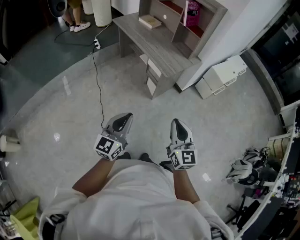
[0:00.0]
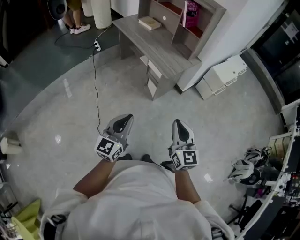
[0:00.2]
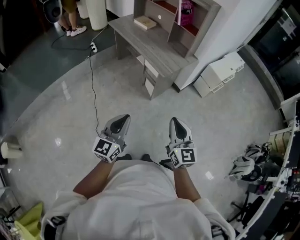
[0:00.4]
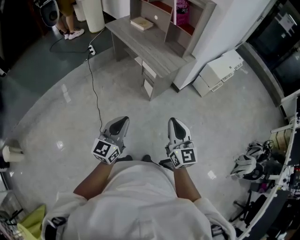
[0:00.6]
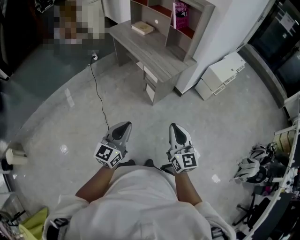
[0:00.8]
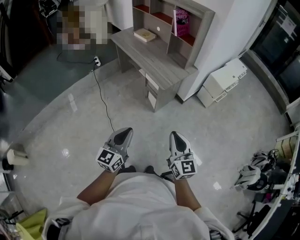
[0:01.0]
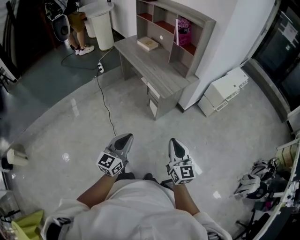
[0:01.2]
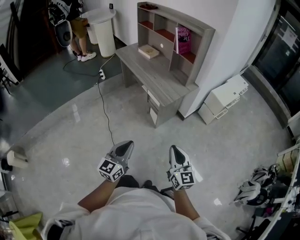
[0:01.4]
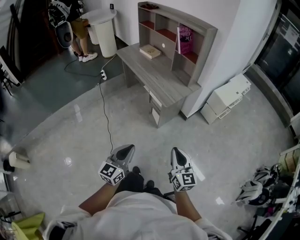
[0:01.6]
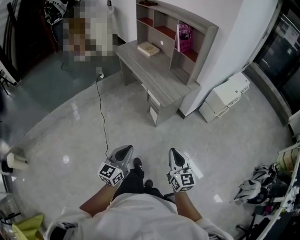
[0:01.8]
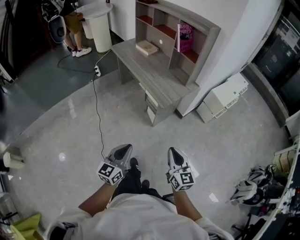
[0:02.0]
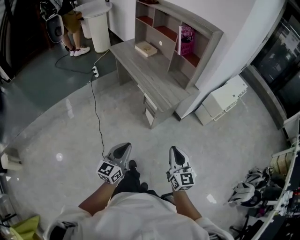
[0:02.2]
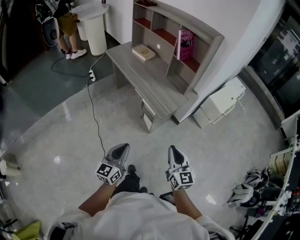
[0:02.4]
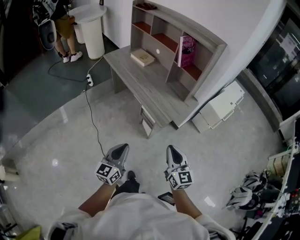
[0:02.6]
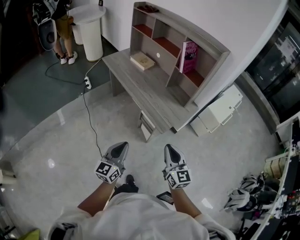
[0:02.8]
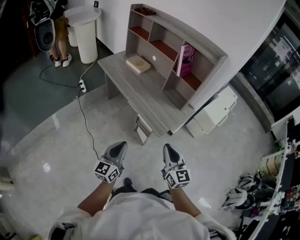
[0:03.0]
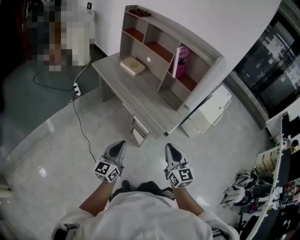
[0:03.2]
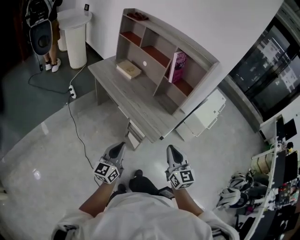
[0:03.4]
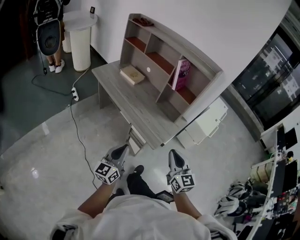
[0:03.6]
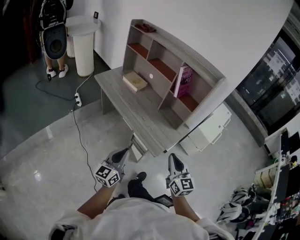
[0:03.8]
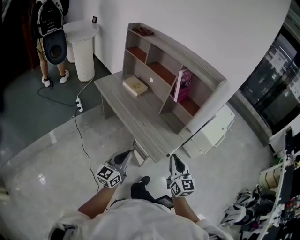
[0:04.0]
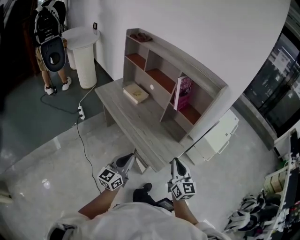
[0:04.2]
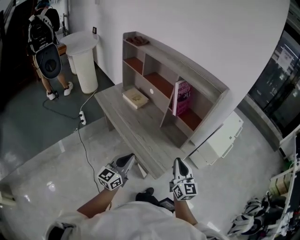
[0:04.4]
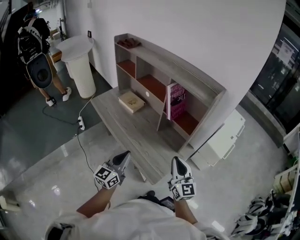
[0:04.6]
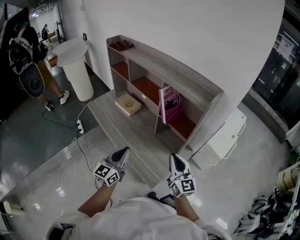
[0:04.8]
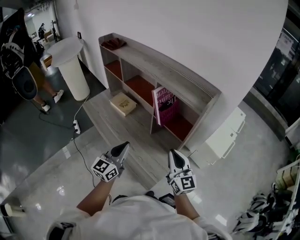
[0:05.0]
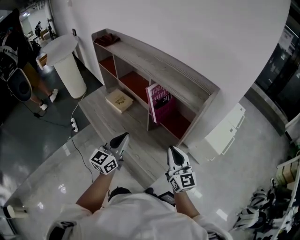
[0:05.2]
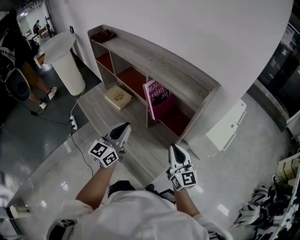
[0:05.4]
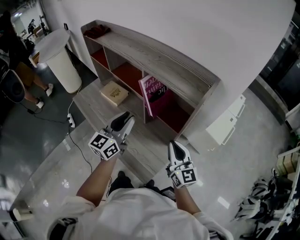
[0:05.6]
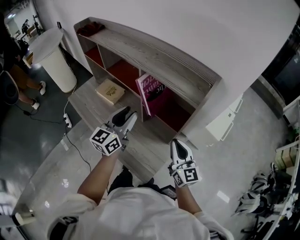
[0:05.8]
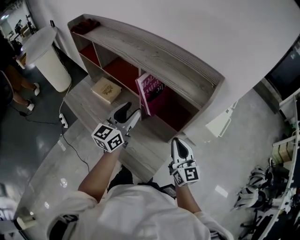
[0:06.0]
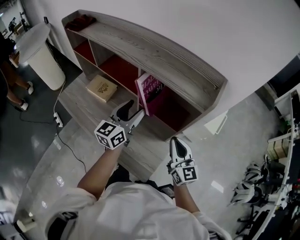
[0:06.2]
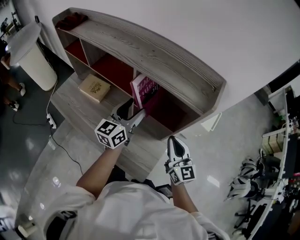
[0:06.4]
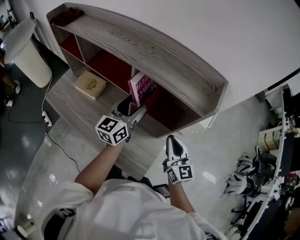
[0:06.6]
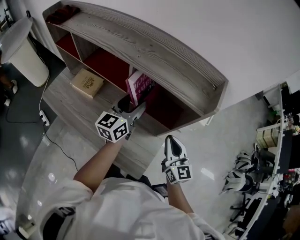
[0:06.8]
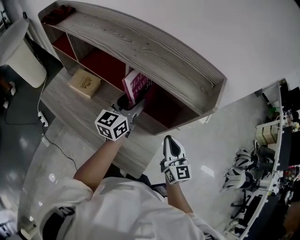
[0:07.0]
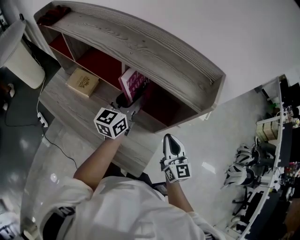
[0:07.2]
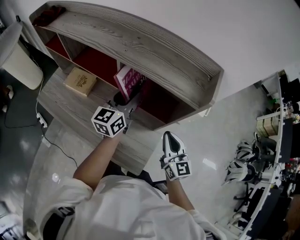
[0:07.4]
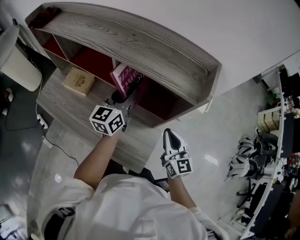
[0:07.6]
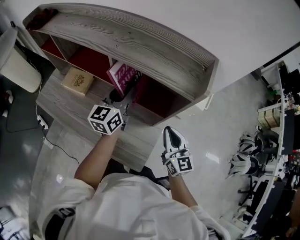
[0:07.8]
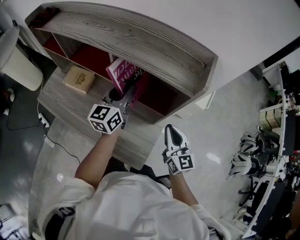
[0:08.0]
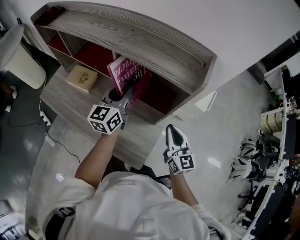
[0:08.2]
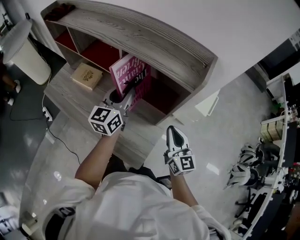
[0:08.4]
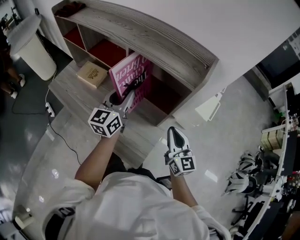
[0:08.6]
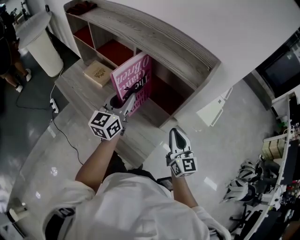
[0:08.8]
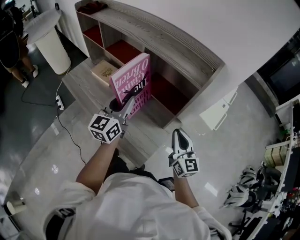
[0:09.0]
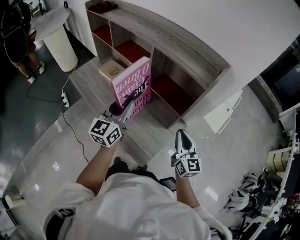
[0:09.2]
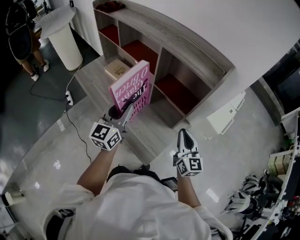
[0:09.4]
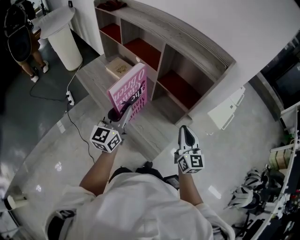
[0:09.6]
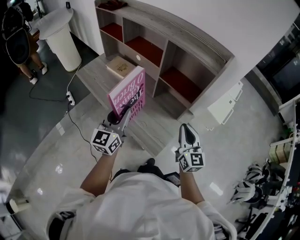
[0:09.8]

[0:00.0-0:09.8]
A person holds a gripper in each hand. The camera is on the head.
0:00.0 to 0:01.4: Both grippers travel together to the right, some 5 cm.
0:01.4 to 0:02.8: The grippers both shift forward and to the left by roughly 25 cm.
0:02.8 to 0:04.2: The two grippers go approximately 20 cm forward.
0:04.2 to 0:05.6: The two grippers go roughly 25 cm forward.
0:05.6 to 0:07.0: The right gripper ends up approximately 5 cm from where it was, while the left gripper goes about 15 cm forward, and opens its fingers.
0:07.0 to 0:08.4: The left gripper closes up.
0:08.4 to 0:09.8: The right gripper moves backward and to the left, roughly 10 cm, while the left gripper moves backward and to the left, approximately 25 cm.

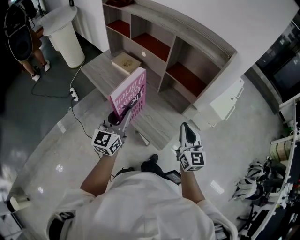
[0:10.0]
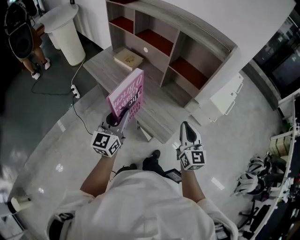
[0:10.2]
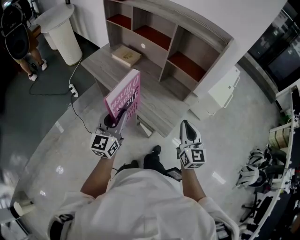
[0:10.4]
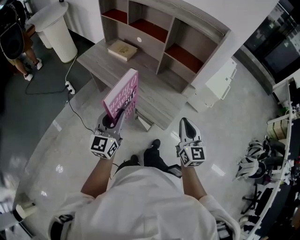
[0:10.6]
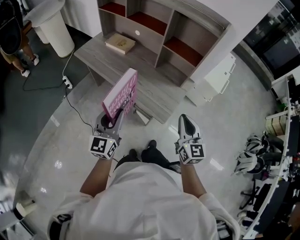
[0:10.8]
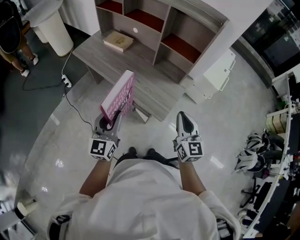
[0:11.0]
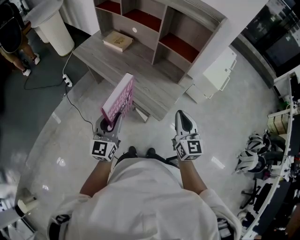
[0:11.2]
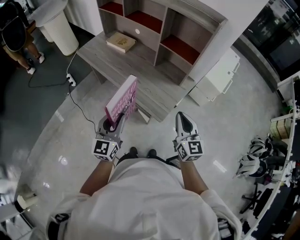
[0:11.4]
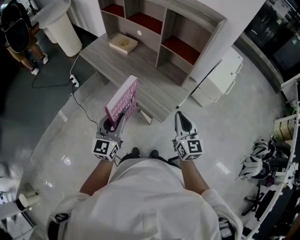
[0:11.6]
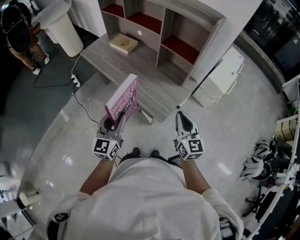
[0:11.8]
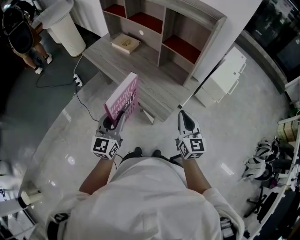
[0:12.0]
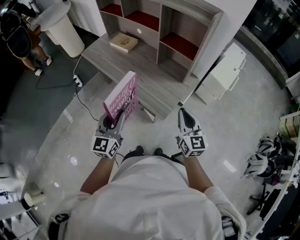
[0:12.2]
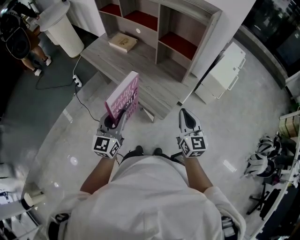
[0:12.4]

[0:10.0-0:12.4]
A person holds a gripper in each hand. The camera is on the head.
0:10.0 to 0:11.2: The right gripper goes approximately 10 cm backward, while the left gripper goes some 15 cm backward and downward.
0:11.2 to 0:12.4: There are only small adjustments of the grippers.

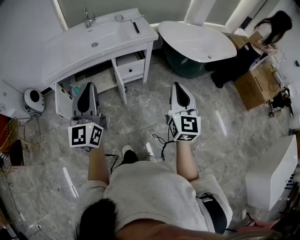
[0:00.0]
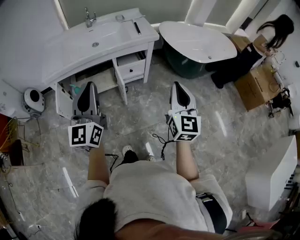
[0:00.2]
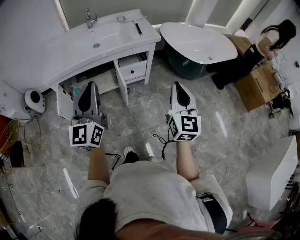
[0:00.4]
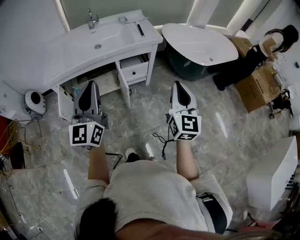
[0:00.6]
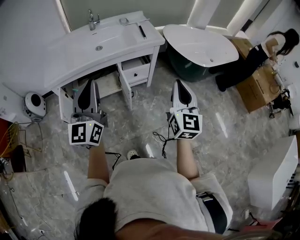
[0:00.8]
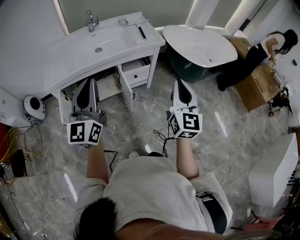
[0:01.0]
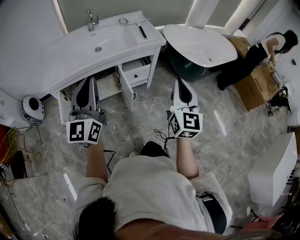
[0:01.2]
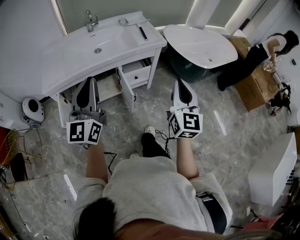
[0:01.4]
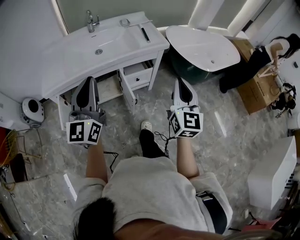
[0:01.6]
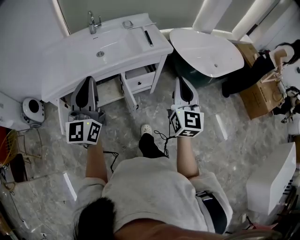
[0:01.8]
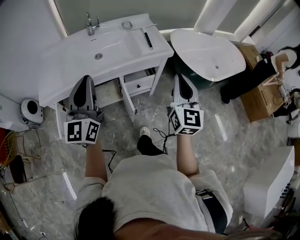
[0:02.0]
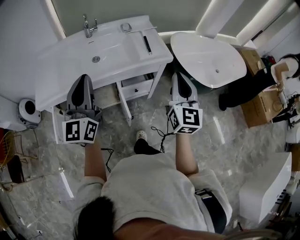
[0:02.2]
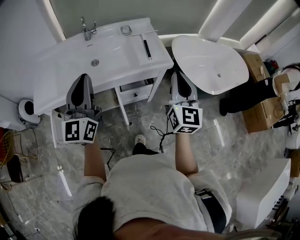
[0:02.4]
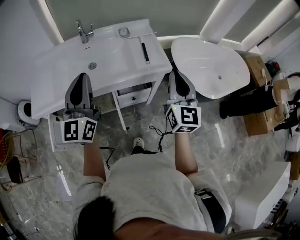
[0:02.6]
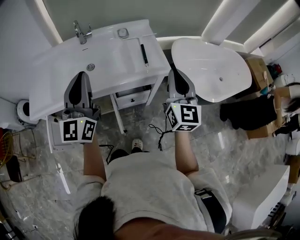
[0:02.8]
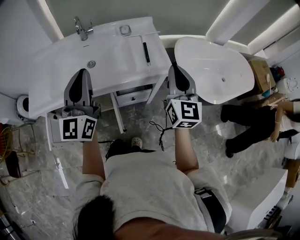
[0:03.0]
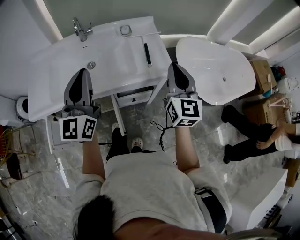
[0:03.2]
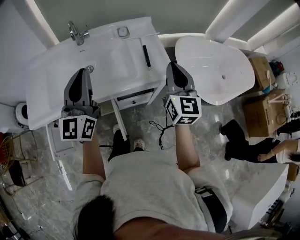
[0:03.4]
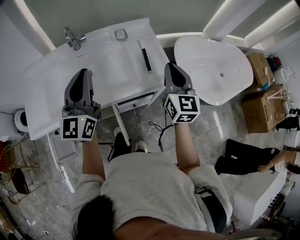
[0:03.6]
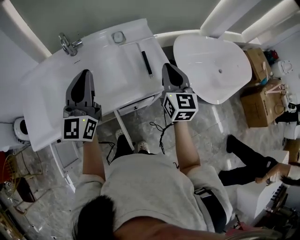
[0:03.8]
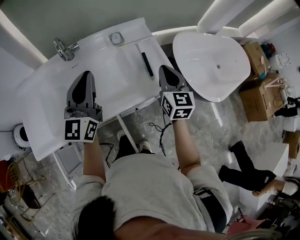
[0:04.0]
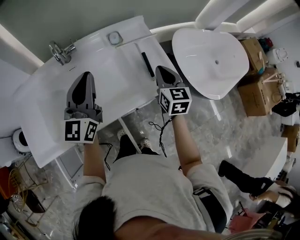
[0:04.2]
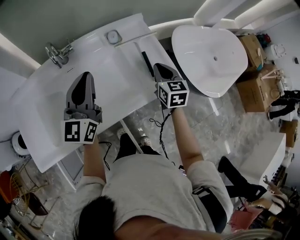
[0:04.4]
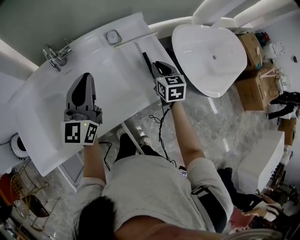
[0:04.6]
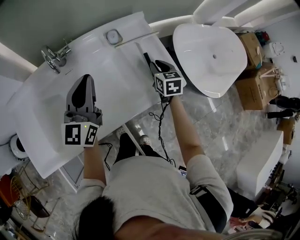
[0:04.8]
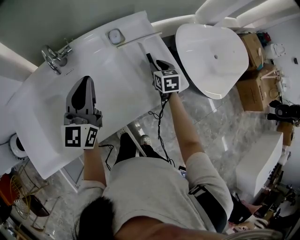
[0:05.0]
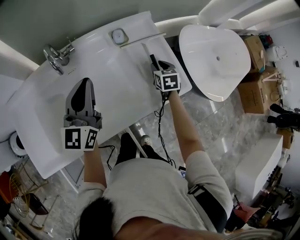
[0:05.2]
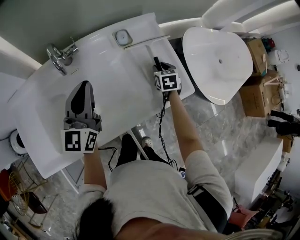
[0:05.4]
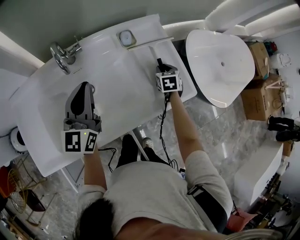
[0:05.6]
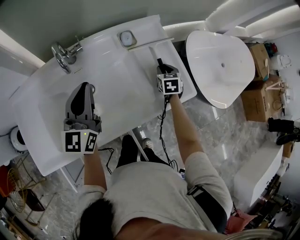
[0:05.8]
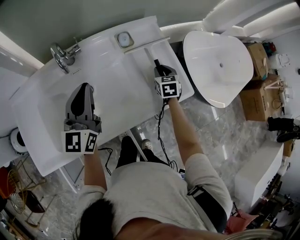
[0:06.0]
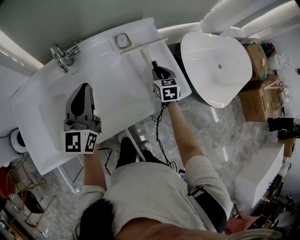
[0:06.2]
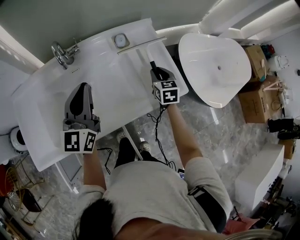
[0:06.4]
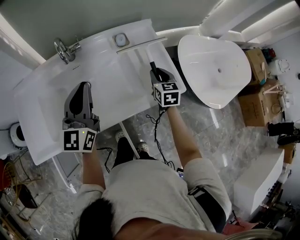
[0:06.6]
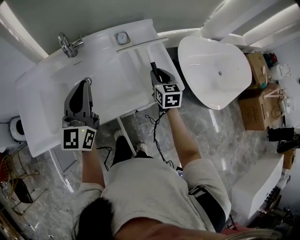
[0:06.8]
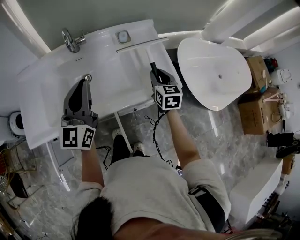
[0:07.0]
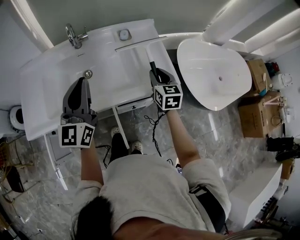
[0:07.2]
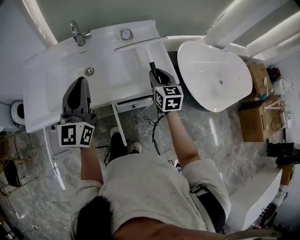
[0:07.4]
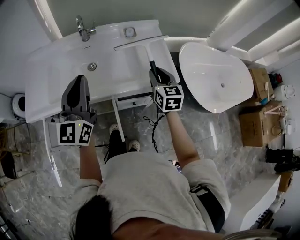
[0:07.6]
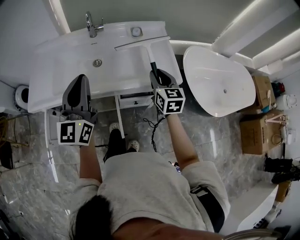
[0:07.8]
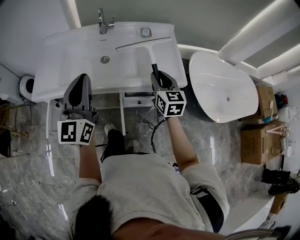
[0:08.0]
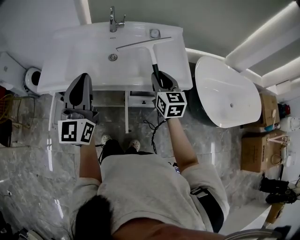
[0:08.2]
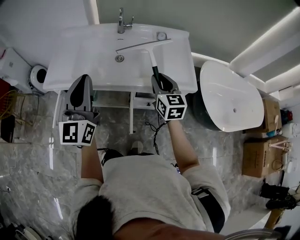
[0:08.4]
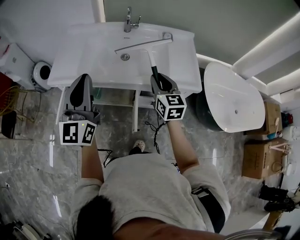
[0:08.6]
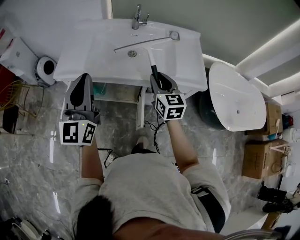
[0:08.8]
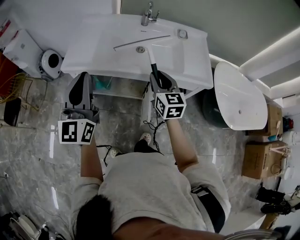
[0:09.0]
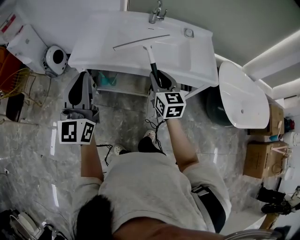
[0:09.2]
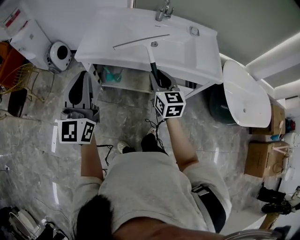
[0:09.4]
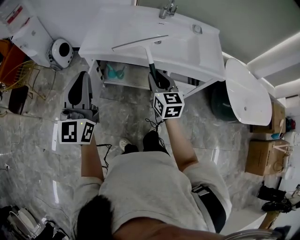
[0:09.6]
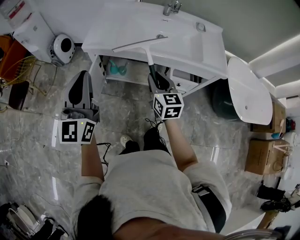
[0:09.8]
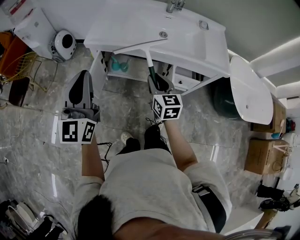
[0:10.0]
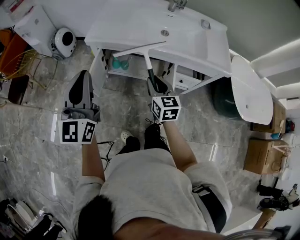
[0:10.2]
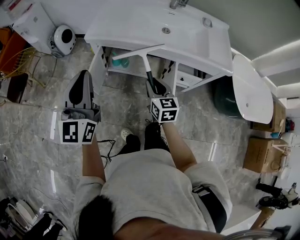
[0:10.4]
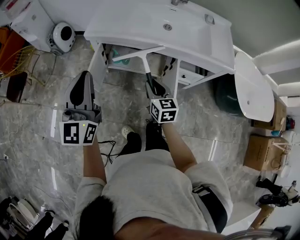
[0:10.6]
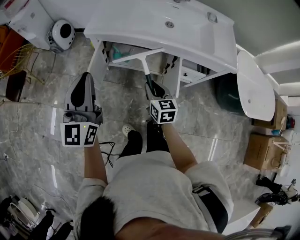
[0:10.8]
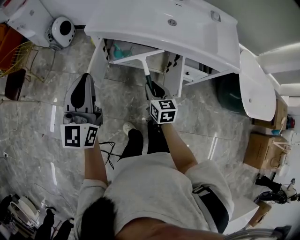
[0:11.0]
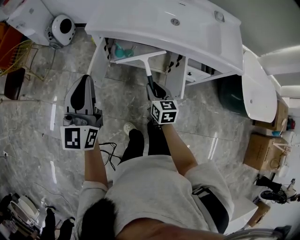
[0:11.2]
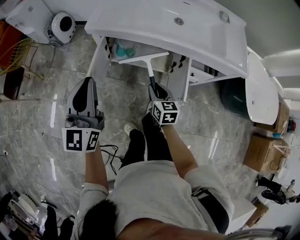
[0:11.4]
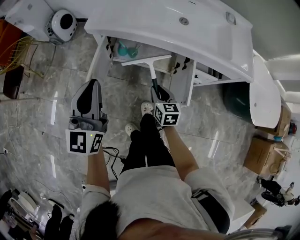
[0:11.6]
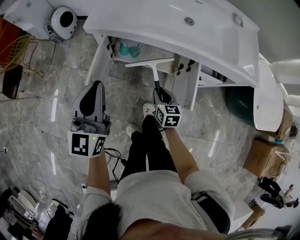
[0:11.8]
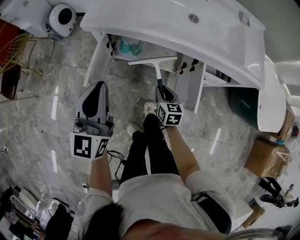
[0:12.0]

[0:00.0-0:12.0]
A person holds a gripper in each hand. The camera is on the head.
0:00.0 to 0:01.6: Both grippers travel together forward and to the left, about 15 cm.
0:01.6 to 0:03.0: The grippers both shift forward by some 30 cm.
0:03.0 to 0:04.4: The left gripper travels forward by roughly 25 cm, and turns by some 20 degrees, while the right gripper travels forward and downward by some 25 cm, and turns by roughly 30 degrees.
0:04.4 to 0:06.0: The right gripper travels downward and forward by some 15 cm, while the left gripper goes about 5 cm to the left.
0:06.0 to 0:07.6: The left gripper heads backward, covering approximately 20 cm; the right gripper goes some 25 cm backward and upward, and changes its angle by about 30 degrees.
0:07.6 to 0:09.0: The left gripper shifts approximately 25 cm to the left and backward. Meanwhile the right gripper goes about 25 cm to the left.
0:09.0 to 0:10.4: The left gripper is displaced to the left and backward by about 20 cm. The right gripper shifts some 25 cm to the left, backward and downward.
0:10.4 to 0:12.0: The right gripper shifts some 25 cm downward, while the left gripper is displaced downward and forward by some 20 cm.
